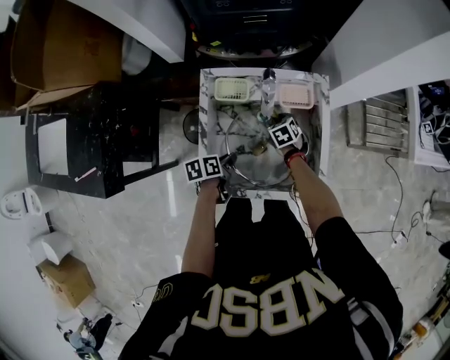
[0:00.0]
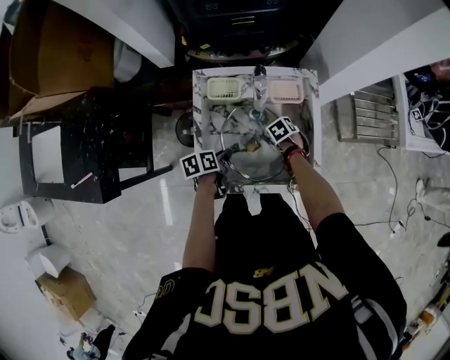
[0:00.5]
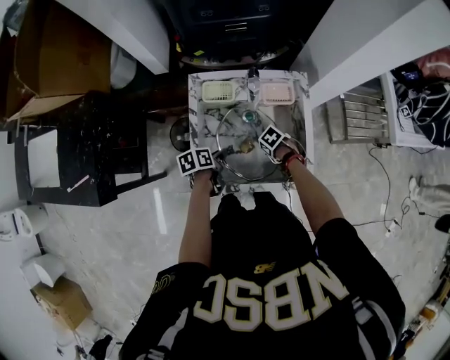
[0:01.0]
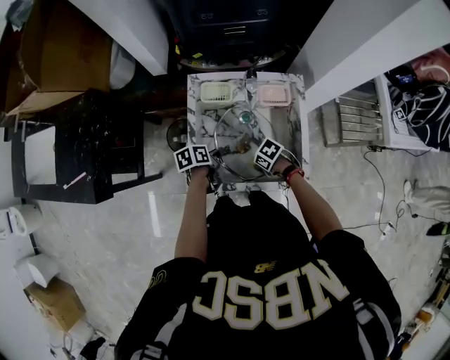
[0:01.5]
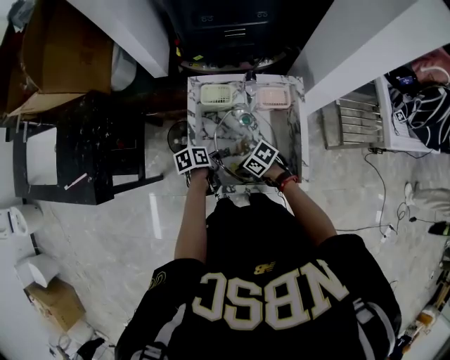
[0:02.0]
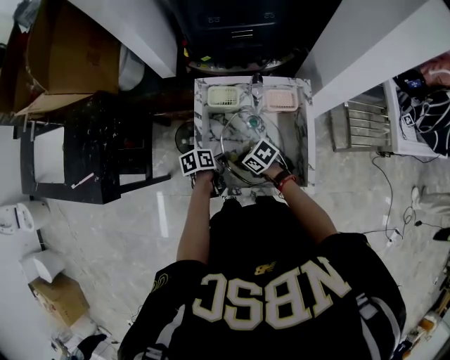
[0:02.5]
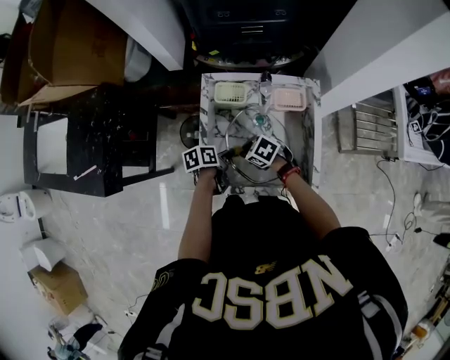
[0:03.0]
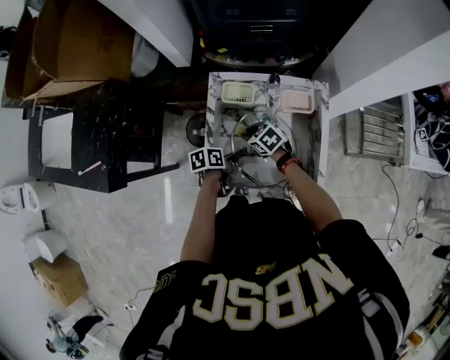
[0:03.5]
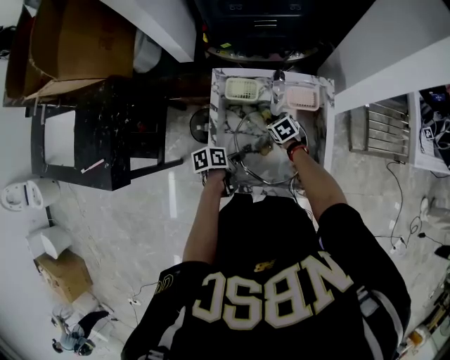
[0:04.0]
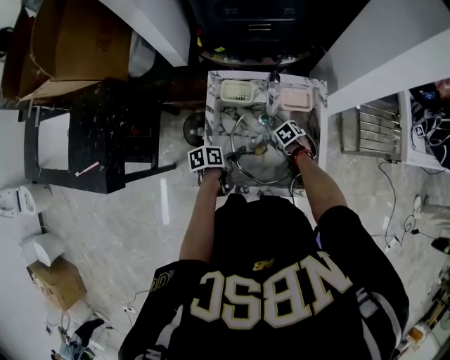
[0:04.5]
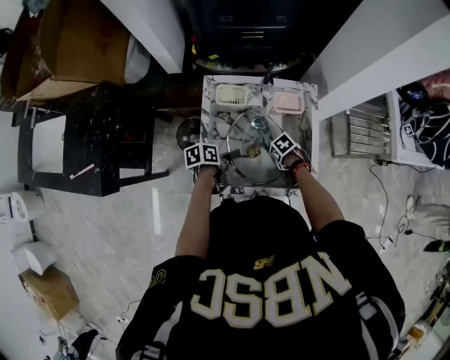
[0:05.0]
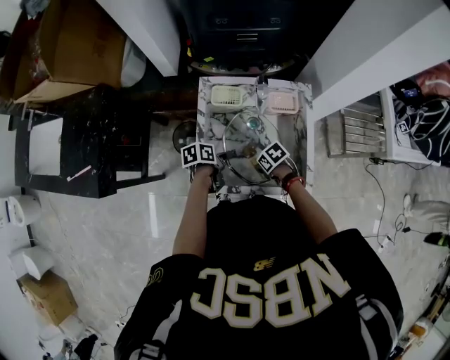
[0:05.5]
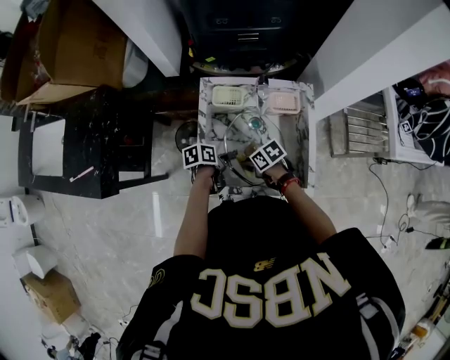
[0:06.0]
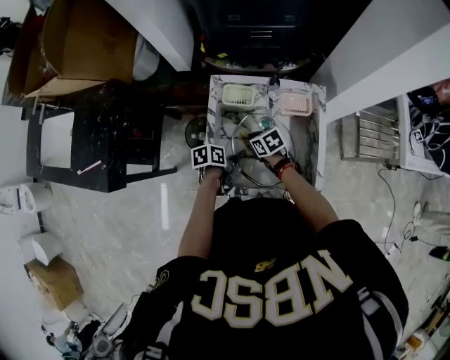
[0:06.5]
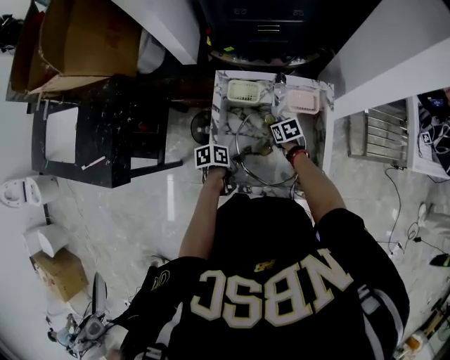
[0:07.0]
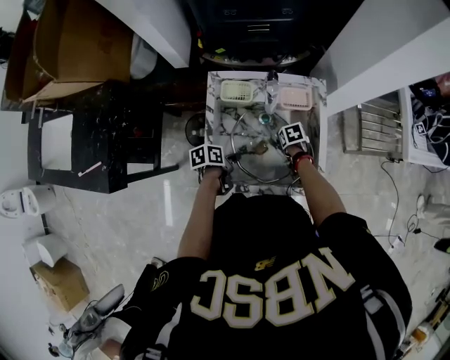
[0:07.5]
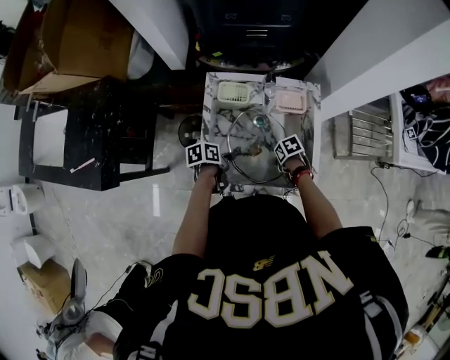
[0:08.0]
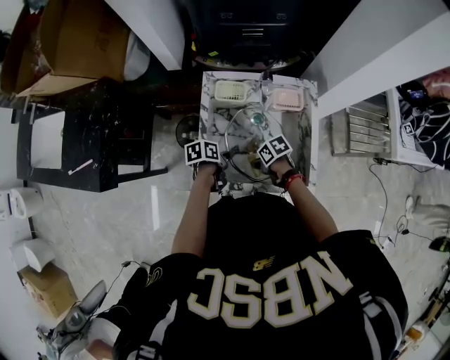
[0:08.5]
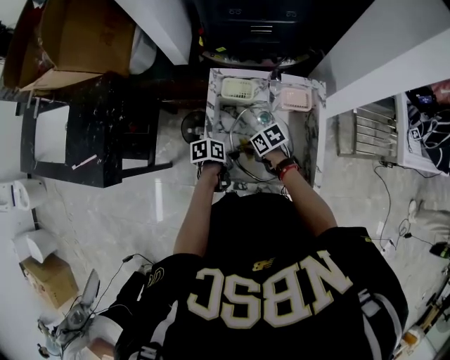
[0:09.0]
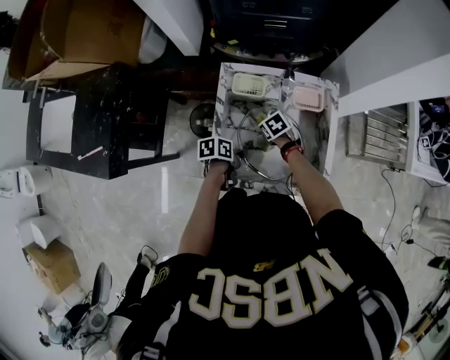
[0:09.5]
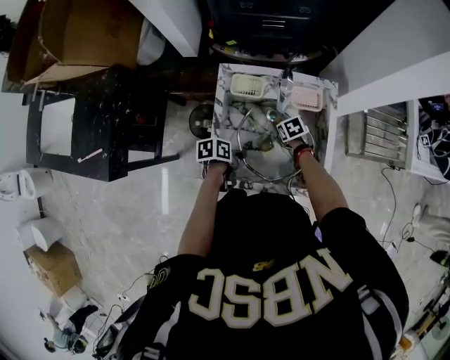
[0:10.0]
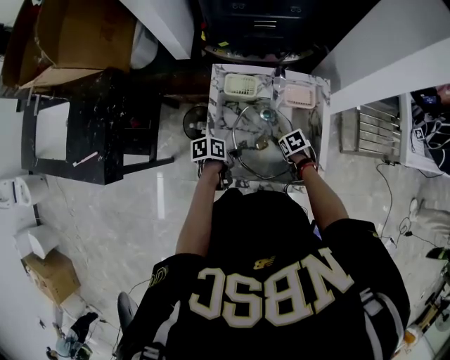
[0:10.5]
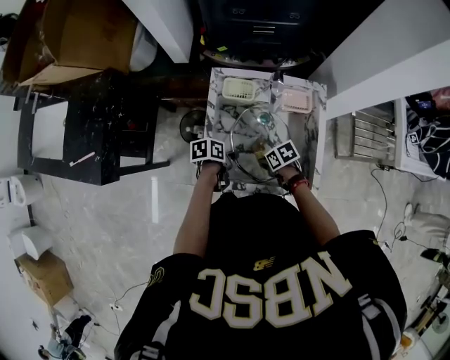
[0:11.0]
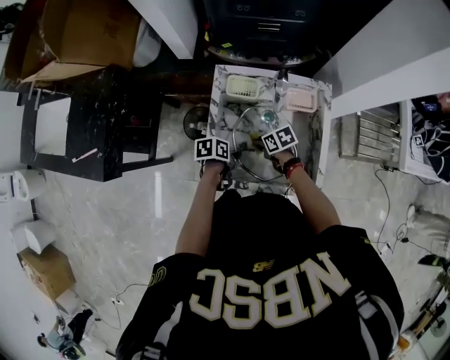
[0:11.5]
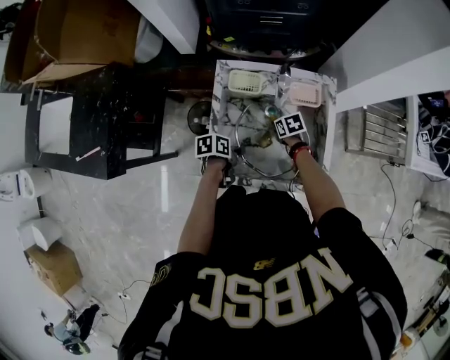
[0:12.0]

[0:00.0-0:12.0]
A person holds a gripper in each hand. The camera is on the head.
0:00.0 to 0:02.0: The right gripper moves roughly 25 cm, and changes its angle by about 50 degrees.
0:02.0 to 0:04.0: The right gripper moves some 20 cm, and changes its angle by approximately 40 degrees.
0:04.0 to 0:06.0: The right gripper ends up about 20 cm from where it was, and turns by some 30 degrees.
0:06.0 to 0:08.0: The right gripper shifts by some 15 cm, and rotates about 30 degrees.
0:08.0 to 0:10.0: The right gripper ends up approximately 15 cm from where it was, and turns by roughly 20 degrees.

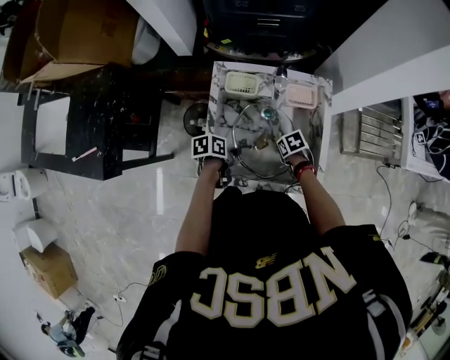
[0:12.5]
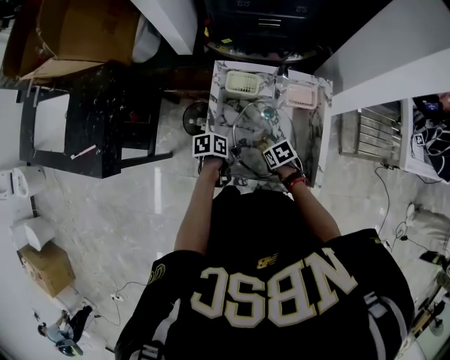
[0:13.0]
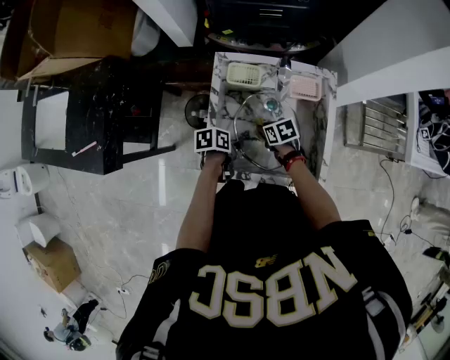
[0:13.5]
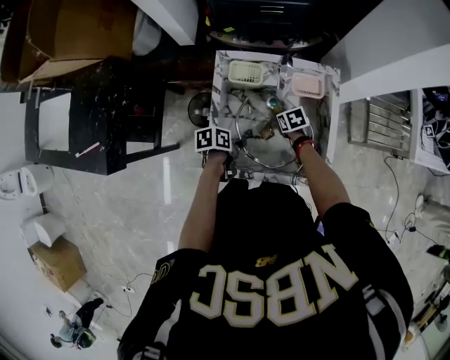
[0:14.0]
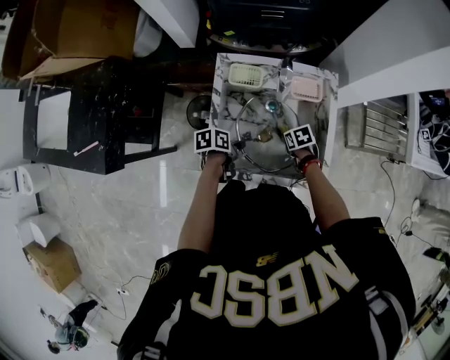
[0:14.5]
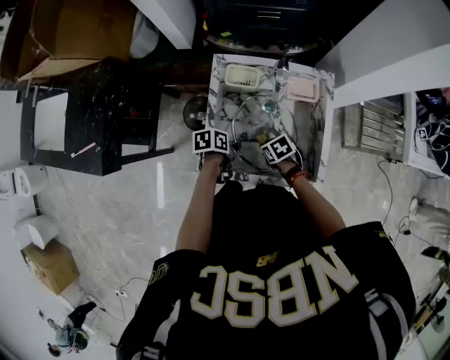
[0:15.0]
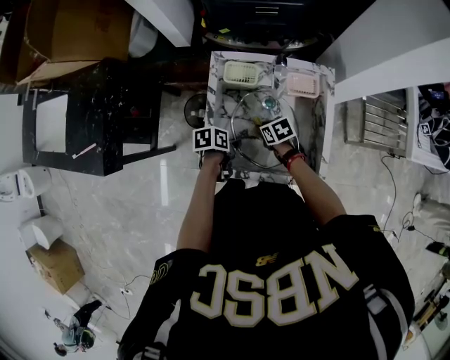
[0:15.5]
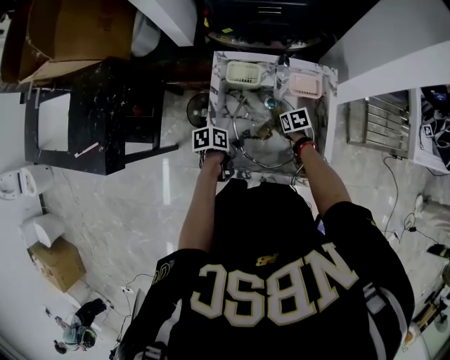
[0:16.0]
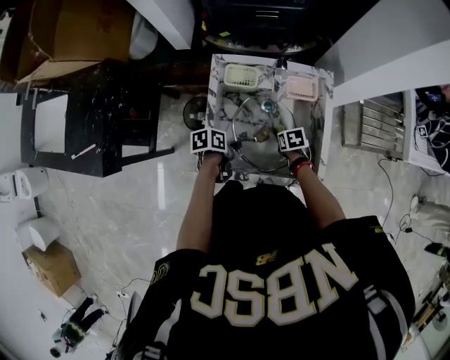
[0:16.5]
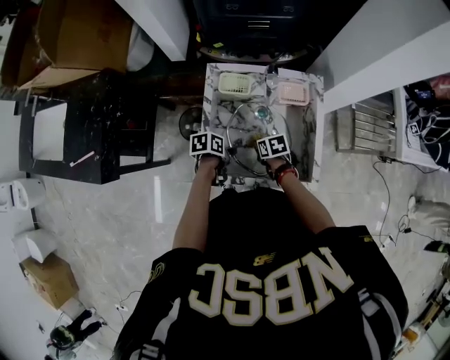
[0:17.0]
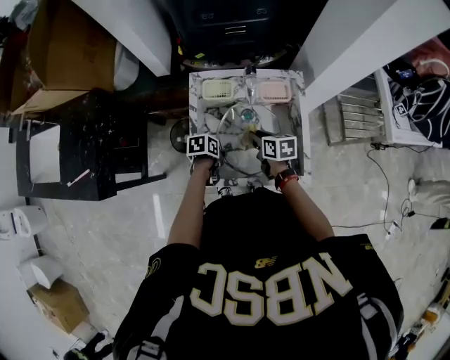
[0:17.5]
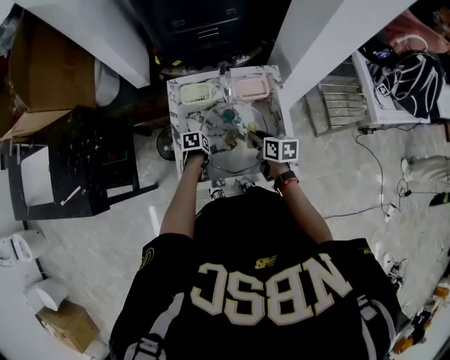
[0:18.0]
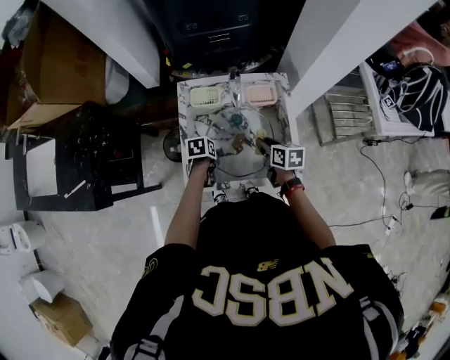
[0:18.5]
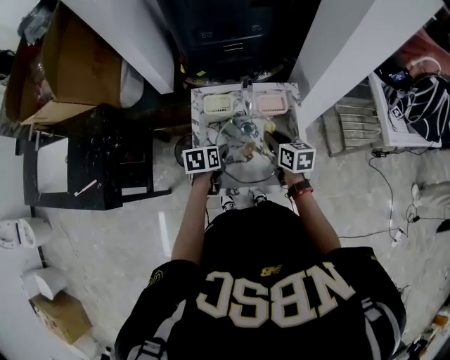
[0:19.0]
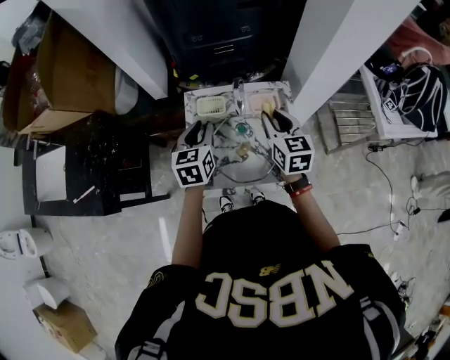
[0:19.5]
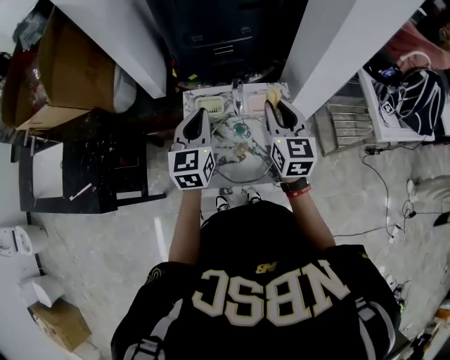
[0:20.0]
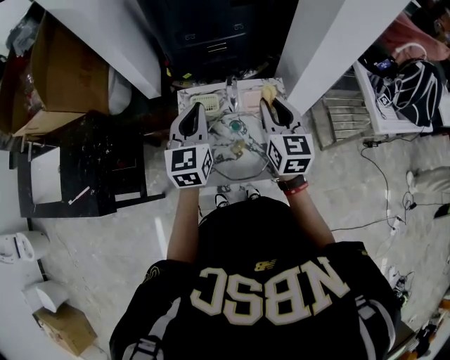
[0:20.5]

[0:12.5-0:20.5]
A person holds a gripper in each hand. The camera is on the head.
0:16.5 to 0:18.5: The right gripper heads upward, covering about 15 cm, and tilts its fingers about 30 degrees upward.
0:18.5 to 0:20.5: The right gripper travels upward by about 25 cm, and swivels roughly 50 degrees.

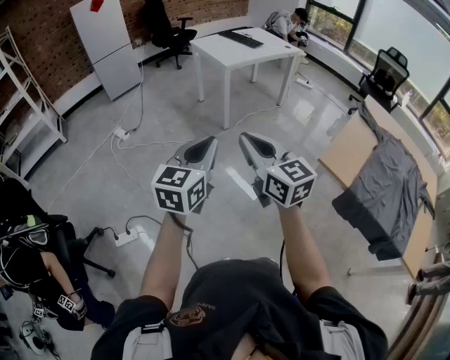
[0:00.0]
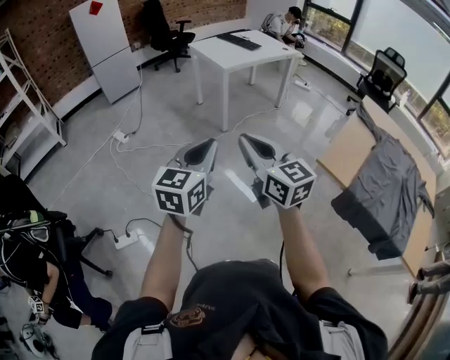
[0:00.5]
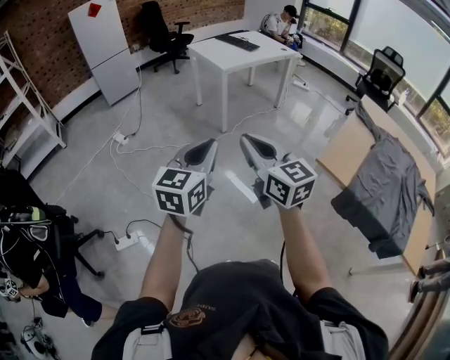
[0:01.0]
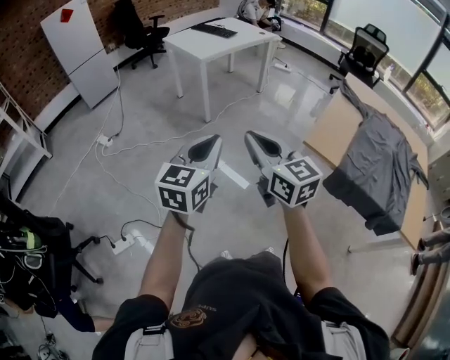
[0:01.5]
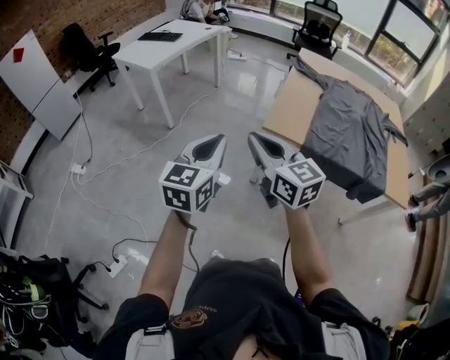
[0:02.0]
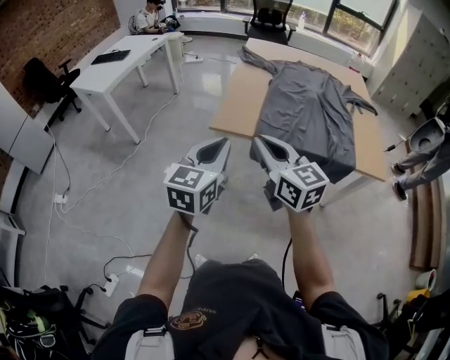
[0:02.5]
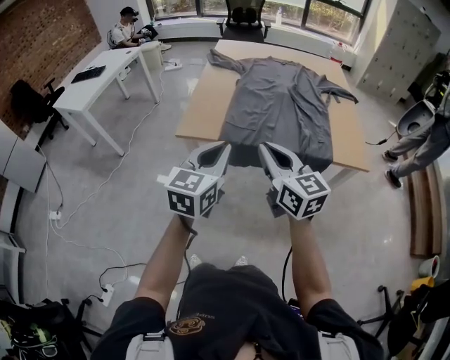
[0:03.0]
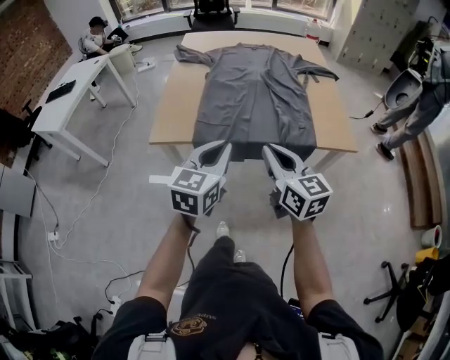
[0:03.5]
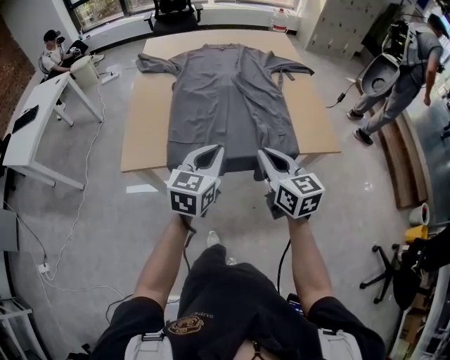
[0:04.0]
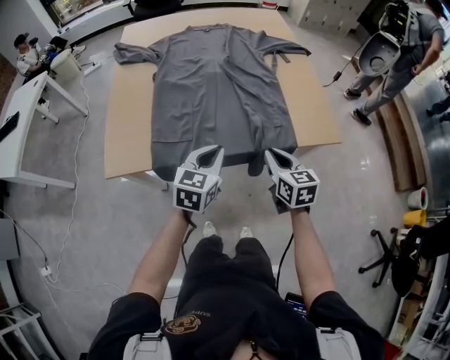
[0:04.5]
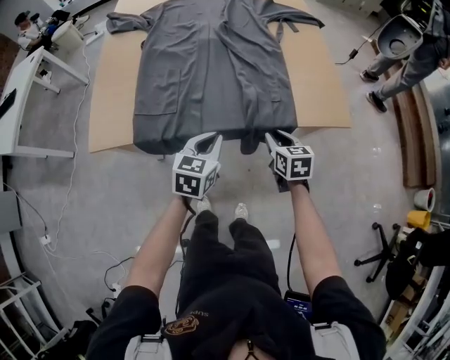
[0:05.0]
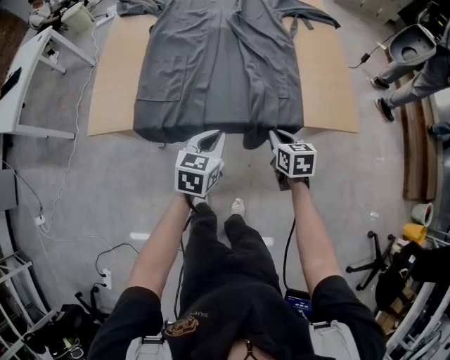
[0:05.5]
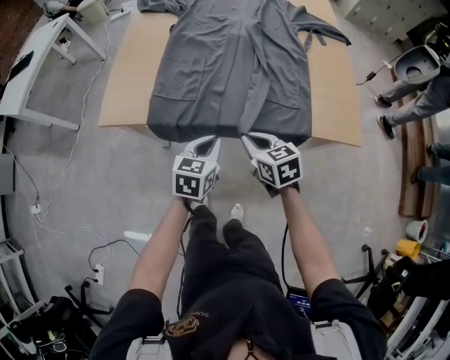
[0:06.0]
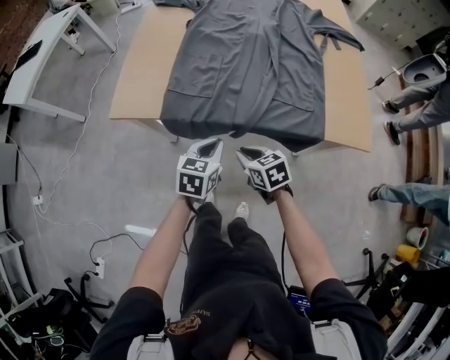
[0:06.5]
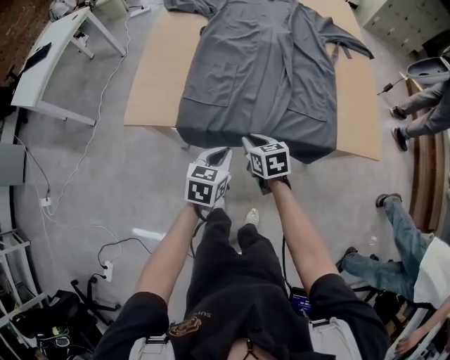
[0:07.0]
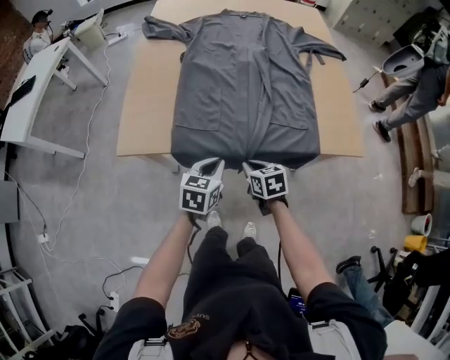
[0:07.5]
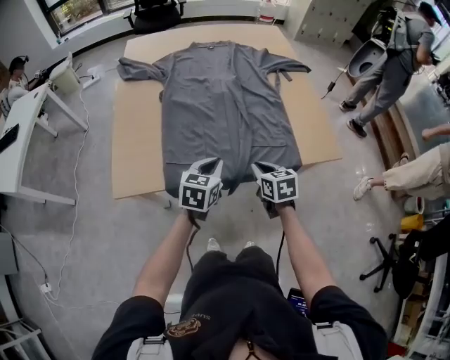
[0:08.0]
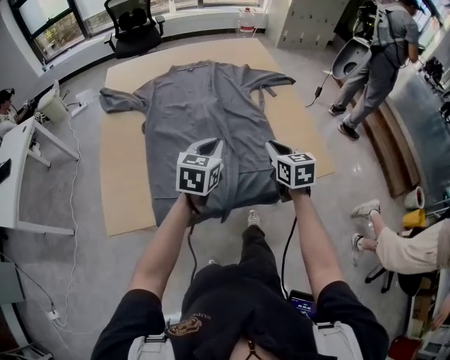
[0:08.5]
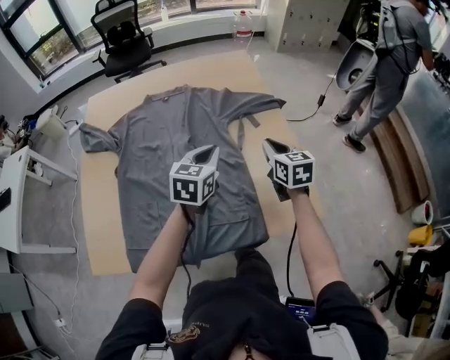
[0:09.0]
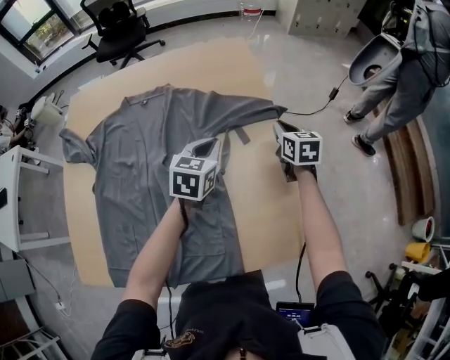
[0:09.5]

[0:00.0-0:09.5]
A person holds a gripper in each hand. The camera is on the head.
0:00.0 to 0:02.0: The grippers both shift to the right by approximately 20 cm. The left gripper turns by about 20 degrees; the right gripper swivels some 20 degrees.
0:02.0 to 0:04.0: The pair of grippers is taken approximately 50 cm. The left gripper changes its angle by approximately 30 degrees, while the right gripper swivels about 40 degrees.
0:04.0 to 0:05.5: The grippers both shift downward and to the right by roughly 25 cm. The right gripper turns by about 30 degrees.
0:05.5 to 0:07.5: The right gripper travels to the left by approximately 20 cm. Meanwhile the left gripper is displaced to the left by roughly 10 cm.
0:07.5 to 0:09.5: The two grippers travel together, forward and to the right, roughly 60 cm. The right gripper swivels some 30 degrees.
